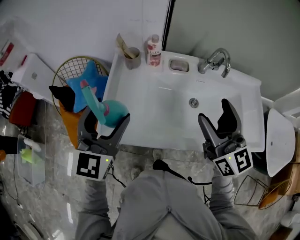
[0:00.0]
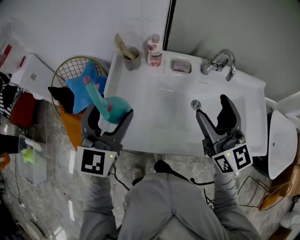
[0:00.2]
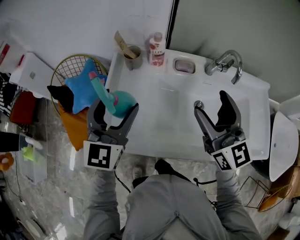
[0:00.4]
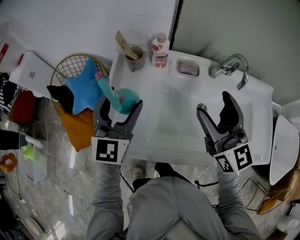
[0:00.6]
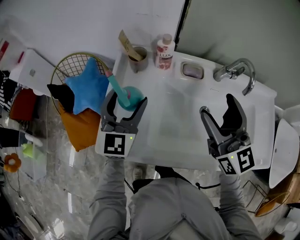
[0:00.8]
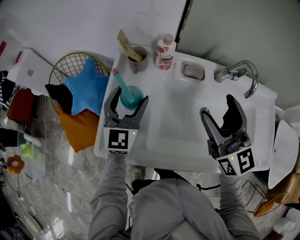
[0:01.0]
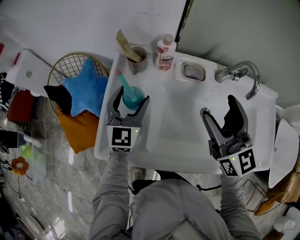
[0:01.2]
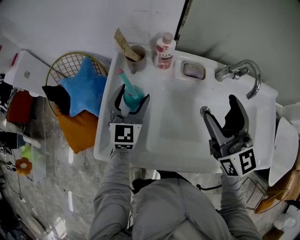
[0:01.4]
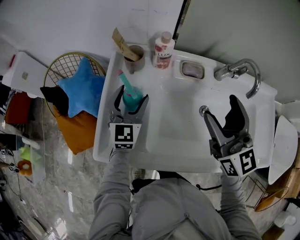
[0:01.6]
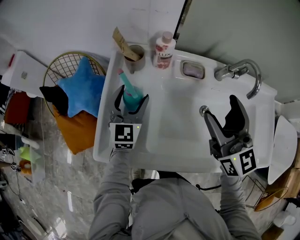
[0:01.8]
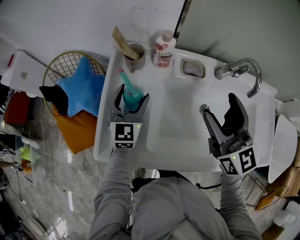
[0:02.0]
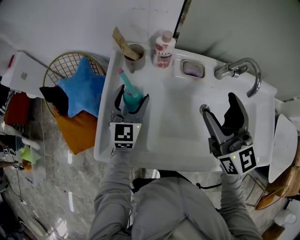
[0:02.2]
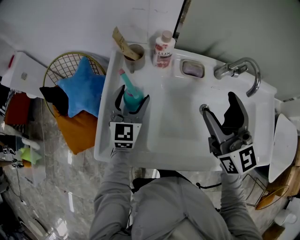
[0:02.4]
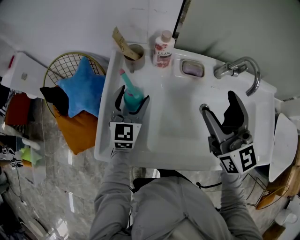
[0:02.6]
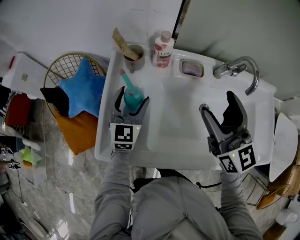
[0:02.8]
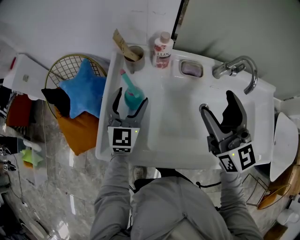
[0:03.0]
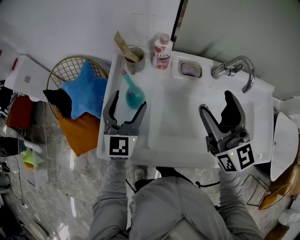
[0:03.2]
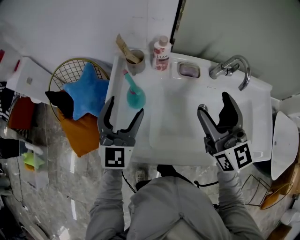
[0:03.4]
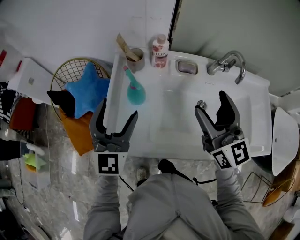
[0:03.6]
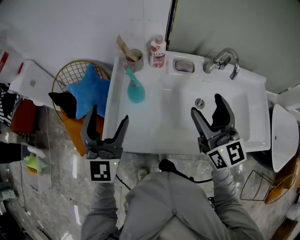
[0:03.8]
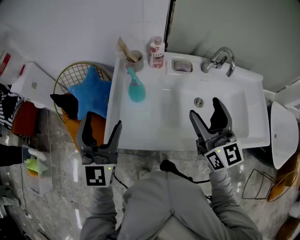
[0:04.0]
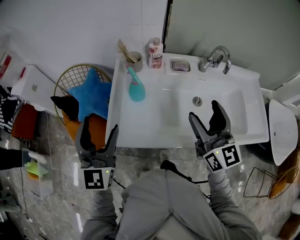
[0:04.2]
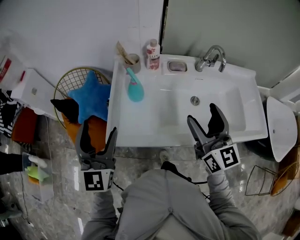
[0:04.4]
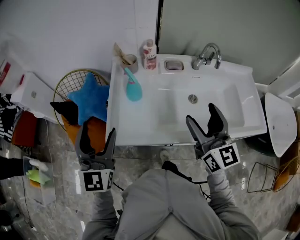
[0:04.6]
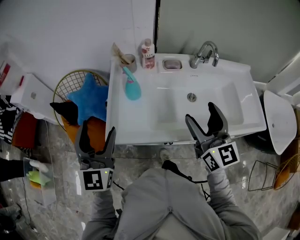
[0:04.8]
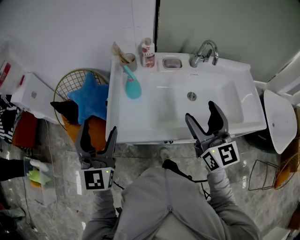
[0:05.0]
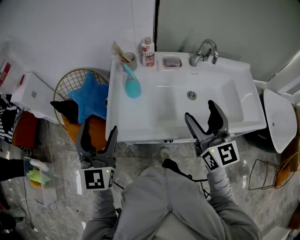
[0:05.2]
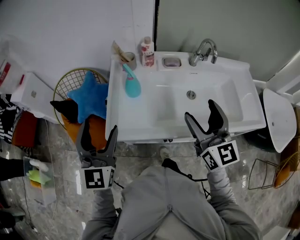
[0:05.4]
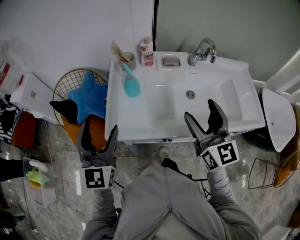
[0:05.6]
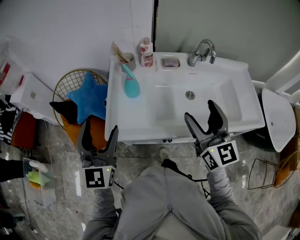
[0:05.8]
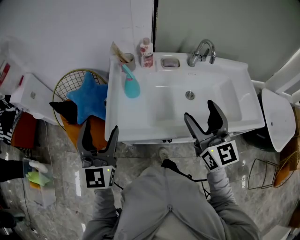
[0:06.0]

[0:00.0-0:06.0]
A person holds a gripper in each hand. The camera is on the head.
0:00.0 to 0:01.6: The right gripper is displaced forward and downward by roughly 15 cm, while the left gripper is displaced downward and forward by about 25 cm.
0:01.6 to 0:03.0: The grippers stay close to where they were, moving slightly.
0:03.0 to 0:04.4: The right gripper shifts approximately 15 cm backward; the left gripper moves backward, upward and to the left, some 30 cm.
0:04.4 to 0:06.0: The grippers stay close to where they were, moving slightly.

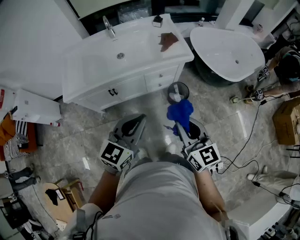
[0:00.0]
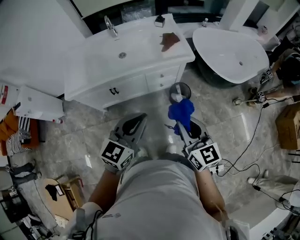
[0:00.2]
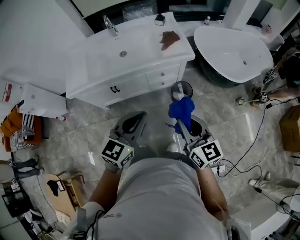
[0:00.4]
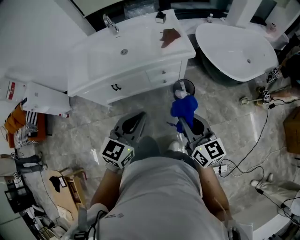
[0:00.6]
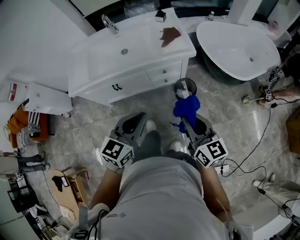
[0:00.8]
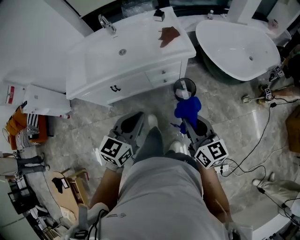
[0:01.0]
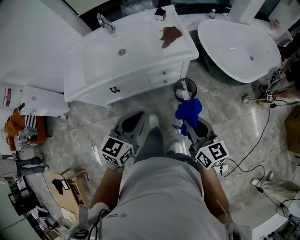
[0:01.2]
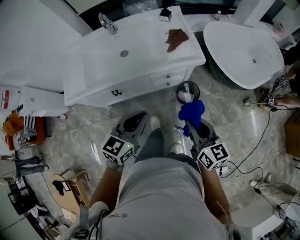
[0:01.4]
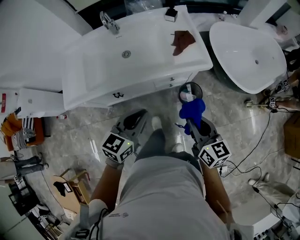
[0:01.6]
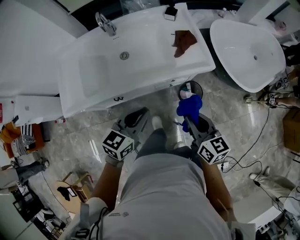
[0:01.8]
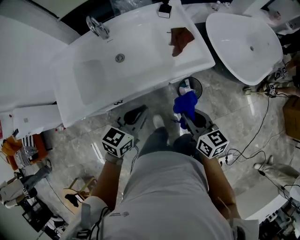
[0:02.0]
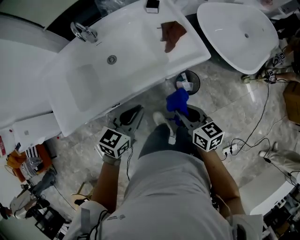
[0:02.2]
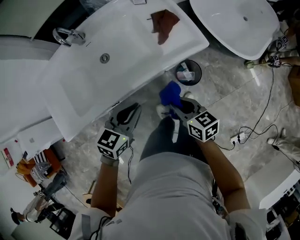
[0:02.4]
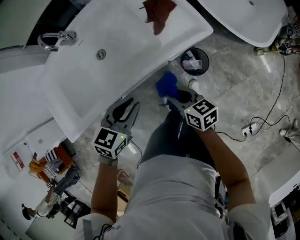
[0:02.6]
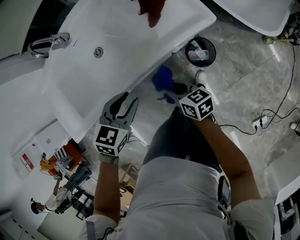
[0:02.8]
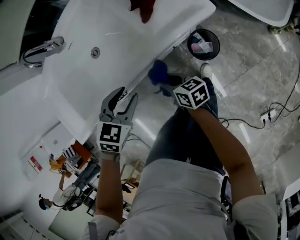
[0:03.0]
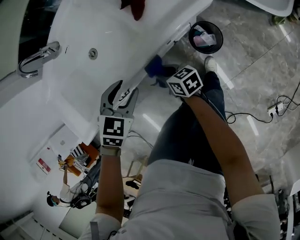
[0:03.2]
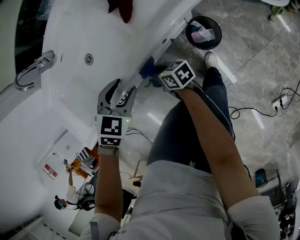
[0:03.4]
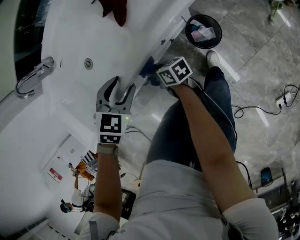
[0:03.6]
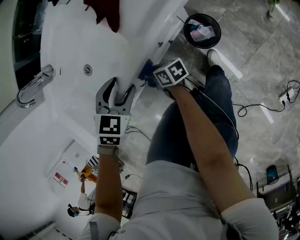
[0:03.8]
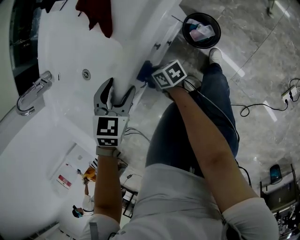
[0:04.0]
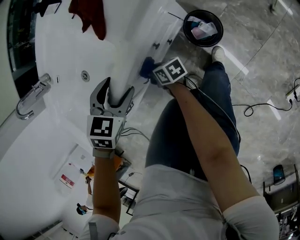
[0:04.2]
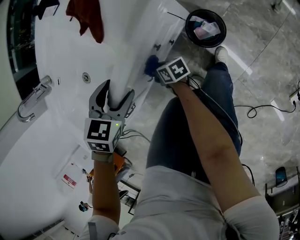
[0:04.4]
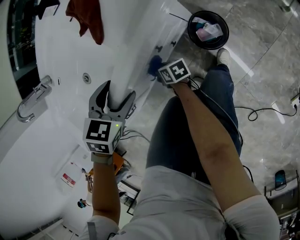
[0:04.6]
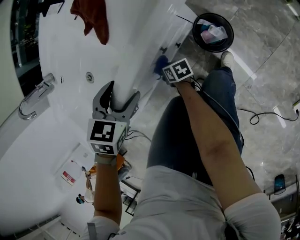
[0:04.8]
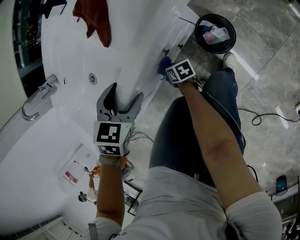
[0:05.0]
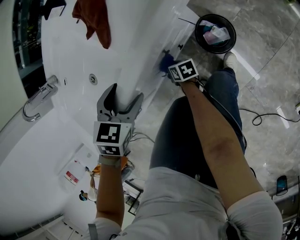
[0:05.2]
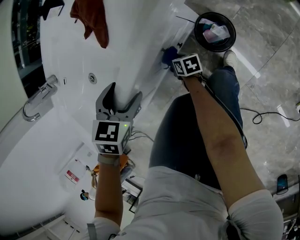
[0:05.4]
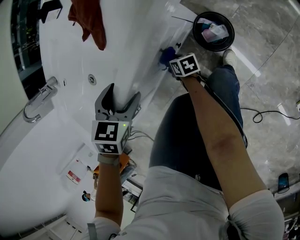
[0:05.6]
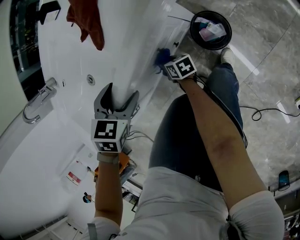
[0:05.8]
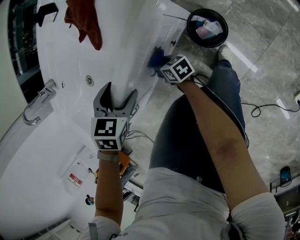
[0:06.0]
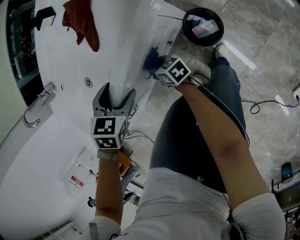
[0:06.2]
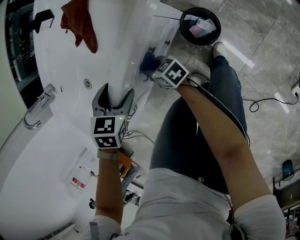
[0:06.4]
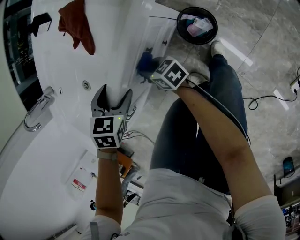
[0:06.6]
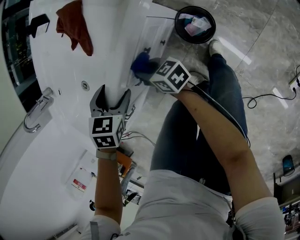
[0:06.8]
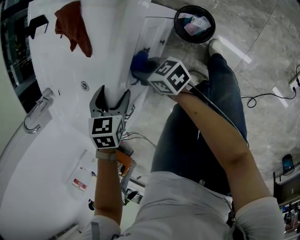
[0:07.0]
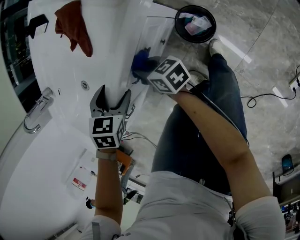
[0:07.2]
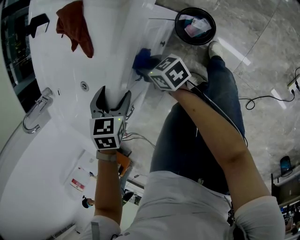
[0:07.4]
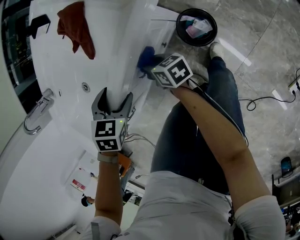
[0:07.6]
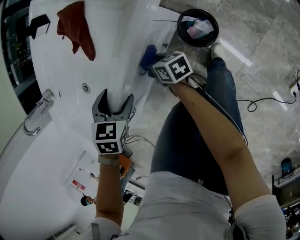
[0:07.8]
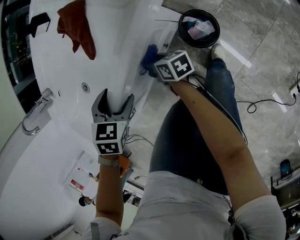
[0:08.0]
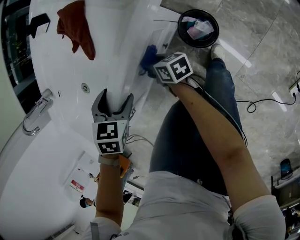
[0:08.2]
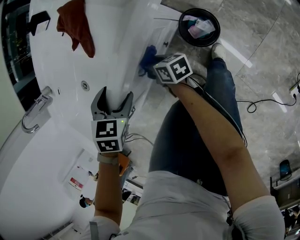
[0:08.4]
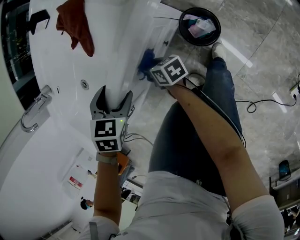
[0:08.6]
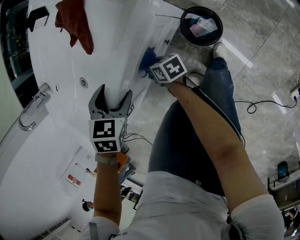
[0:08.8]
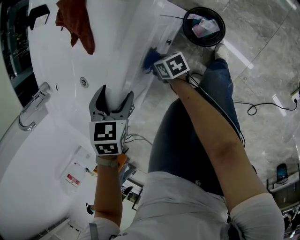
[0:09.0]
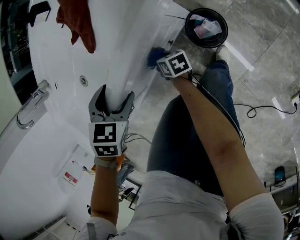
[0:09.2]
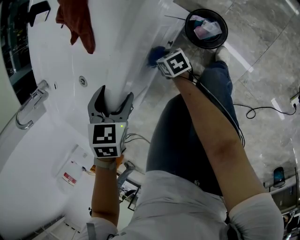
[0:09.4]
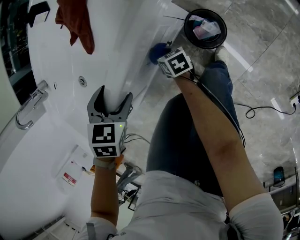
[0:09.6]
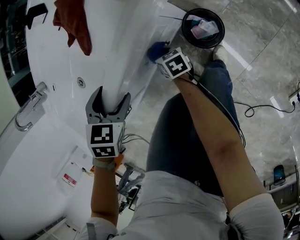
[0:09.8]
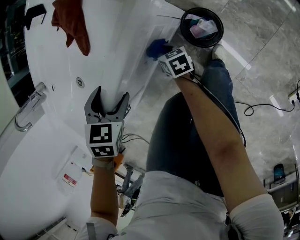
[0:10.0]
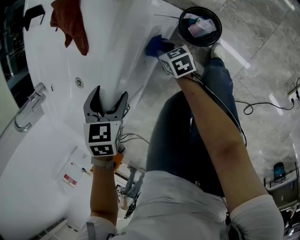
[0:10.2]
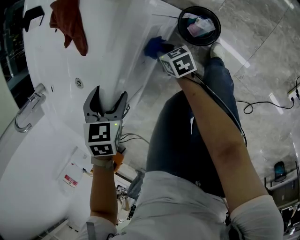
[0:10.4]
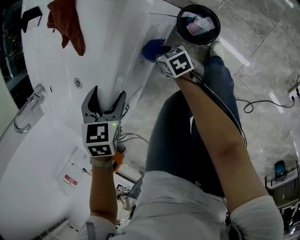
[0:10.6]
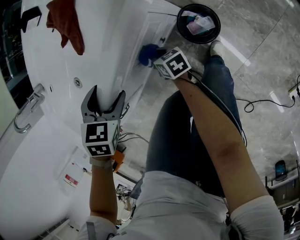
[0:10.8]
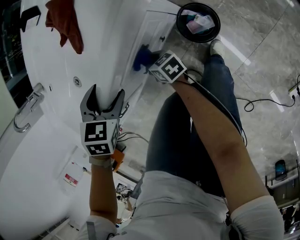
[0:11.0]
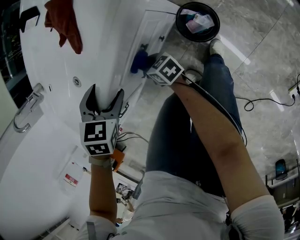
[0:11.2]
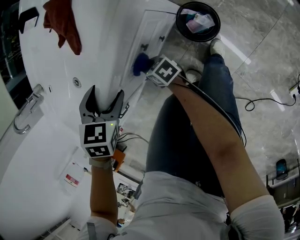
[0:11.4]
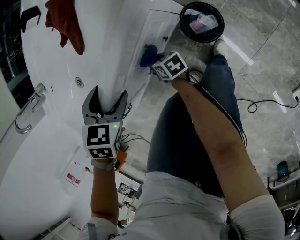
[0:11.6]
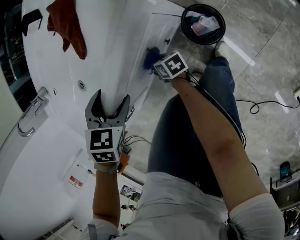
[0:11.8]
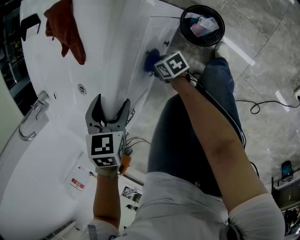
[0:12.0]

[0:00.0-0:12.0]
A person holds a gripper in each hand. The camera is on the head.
0:00.0 to 0:01.6: The two grippers go about 20 cm forward and downward.
0:01.6 to 0:03.0: The left gripper is displaced downward and forward by some 25 cm, tips its fingers downward by roughly 30 degrees, and opens up. Meanwhile the right gripper is displaced downward, to the left and forward by some 35 cm, and swivels some 30 degrees.
0:03.0 to 0:04.4: The left gripper travels downward, forward and to the right by some 10 cm, and opens its fingers. The right gripper heads downward, covering approximately 20 cm.
0:06.0 to 0:07.6: The right gripper moves upward and to the right, some 10 cm.
0:07.6 to 0:09.0: The right gripper shifts about 10 cm downward.
0:09.0 to 0:10.4: The right gripper goes some 10 cm to the right.
0:10.4 to 0:12.0: The right gripper heads to the left, covering roughly 10 cm, and changes its angle by approximately 20 degrees.

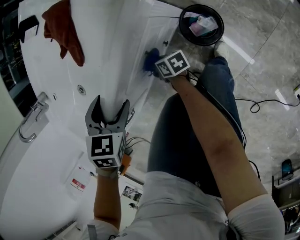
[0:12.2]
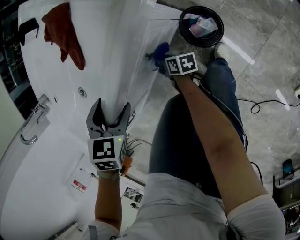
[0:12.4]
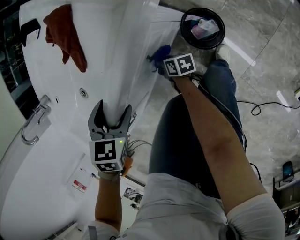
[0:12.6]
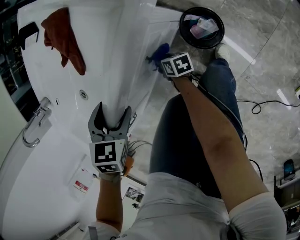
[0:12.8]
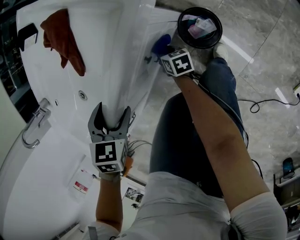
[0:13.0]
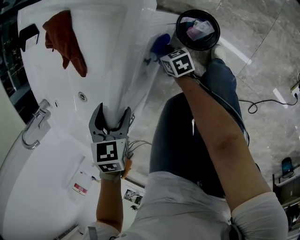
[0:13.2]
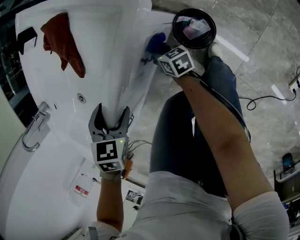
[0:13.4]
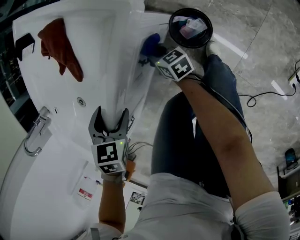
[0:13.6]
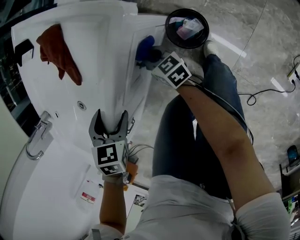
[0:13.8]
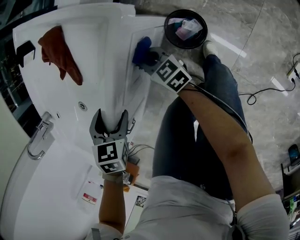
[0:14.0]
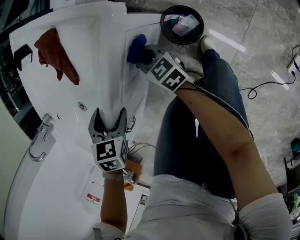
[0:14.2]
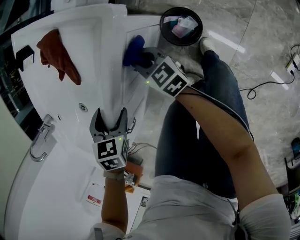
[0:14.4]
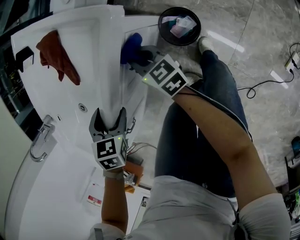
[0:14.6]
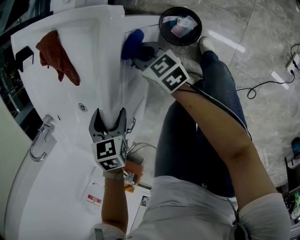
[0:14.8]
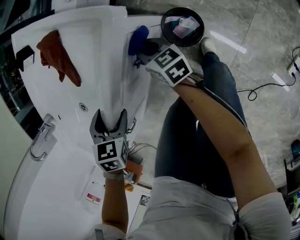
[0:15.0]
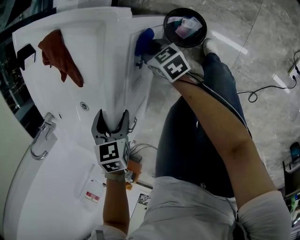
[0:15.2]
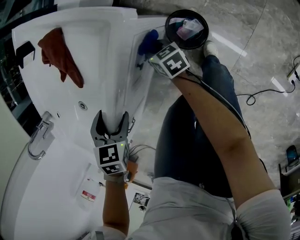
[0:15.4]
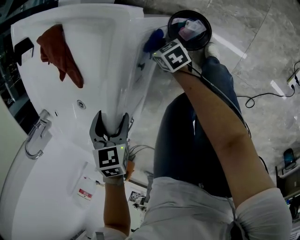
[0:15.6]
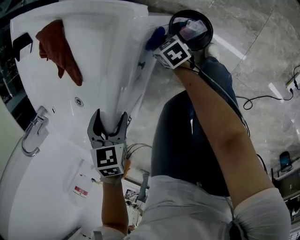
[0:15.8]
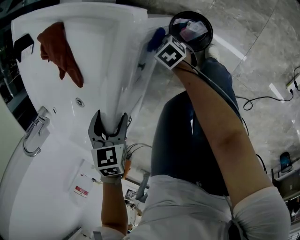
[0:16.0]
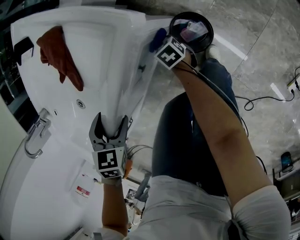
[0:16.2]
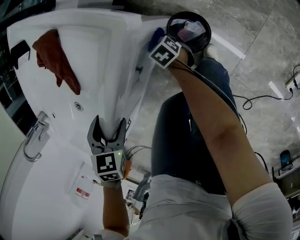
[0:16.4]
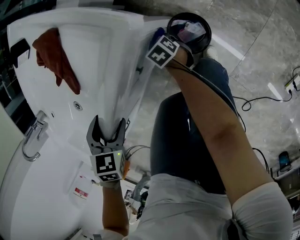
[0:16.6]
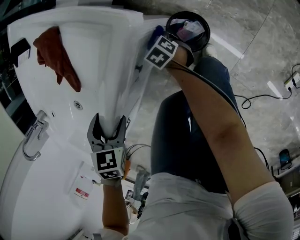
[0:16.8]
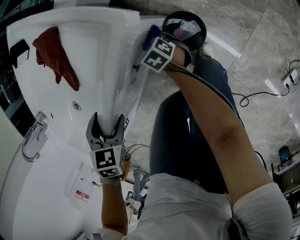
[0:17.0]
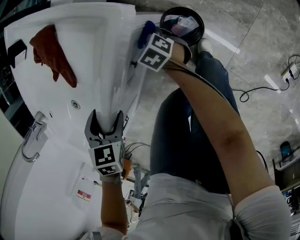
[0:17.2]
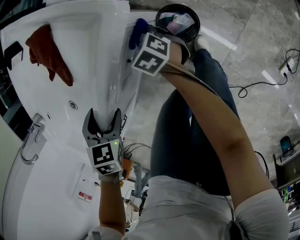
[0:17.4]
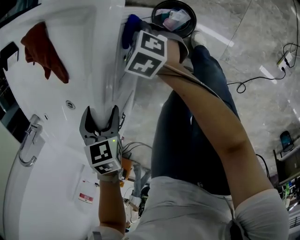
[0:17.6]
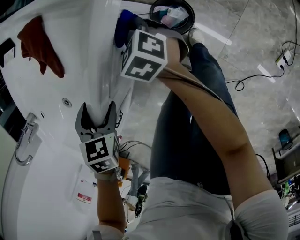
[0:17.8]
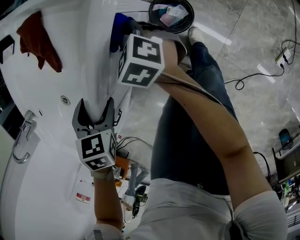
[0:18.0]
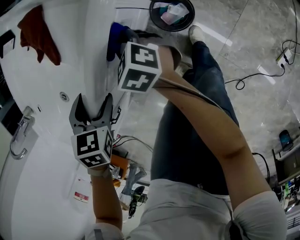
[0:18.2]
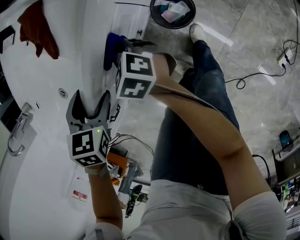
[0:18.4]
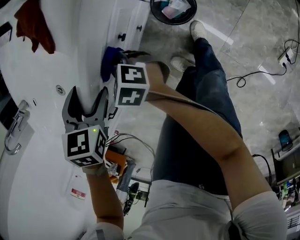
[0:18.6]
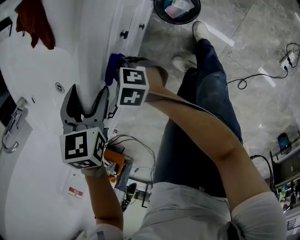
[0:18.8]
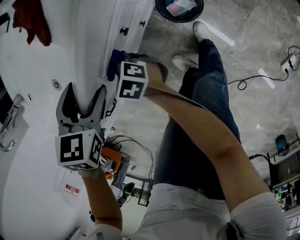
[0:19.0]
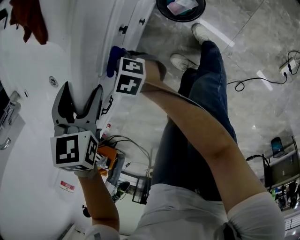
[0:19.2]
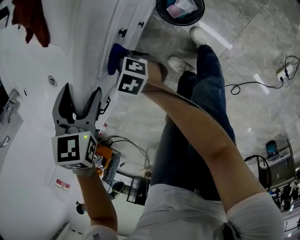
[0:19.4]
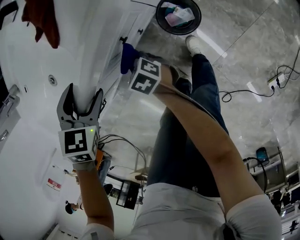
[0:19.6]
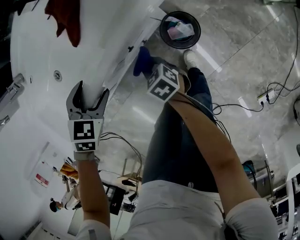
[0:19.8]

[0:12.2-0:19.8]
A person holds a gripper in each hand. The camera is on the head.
0:12.2 to 0:13.8: The right gripper travels to the right and upward by some 15 cm, and changes its angle by roughly 30 degrees.
0:13.8 to 0:15.2: The right gripper goes upward and returns, roughly 10 cm each way.
0:15.2 to 0:16.8: The right gripper is displaced downward by some 15 cm, and tips its fingers downward by roughly 30 degrees.
0:16.8 to 0:18.2: The right gripper travels upward by about 20 cm.
0:18.2 to 0:19.8: The right gripper shifts roughly 10 cm backward and downward, and moves some 15 cm to the left and comes back.
